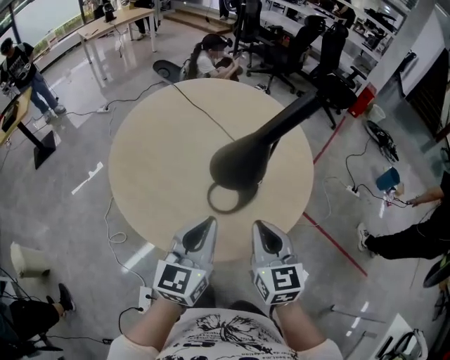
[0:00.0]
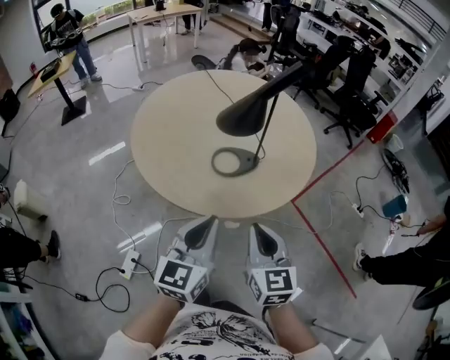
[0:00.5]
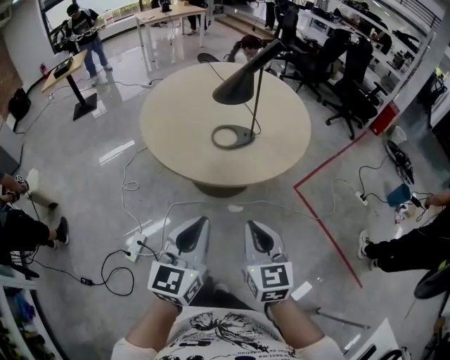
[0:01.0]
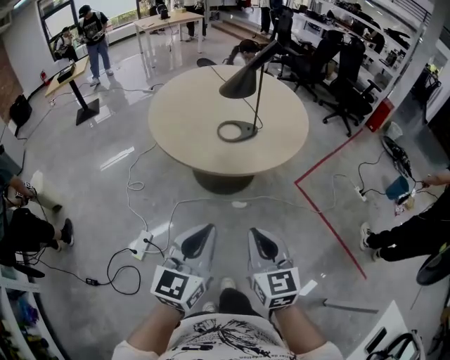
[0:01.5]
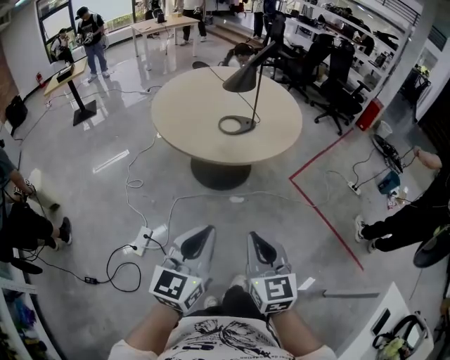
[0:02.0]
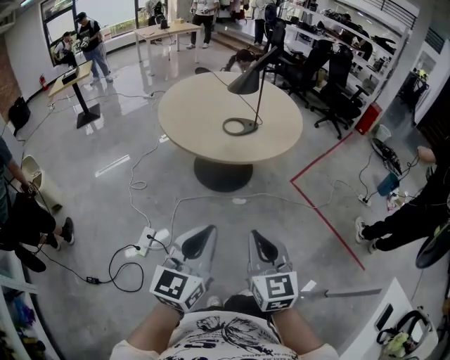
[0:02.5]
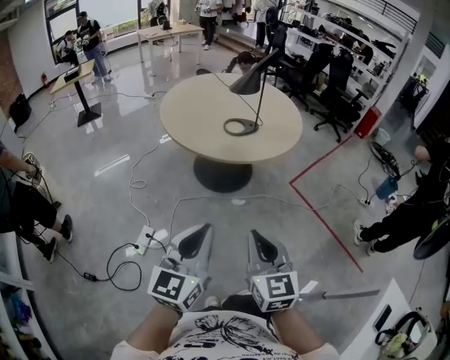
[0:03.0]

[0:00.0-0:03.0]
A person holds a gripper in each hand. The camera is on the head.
0:00.0 to 0:01.5: Both grippers travel together backward, approximately 35 cm.
0:01.5 to 0:03.0: The two grippers go roughly 10 cm backward.

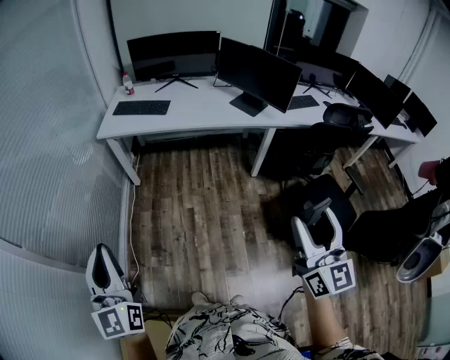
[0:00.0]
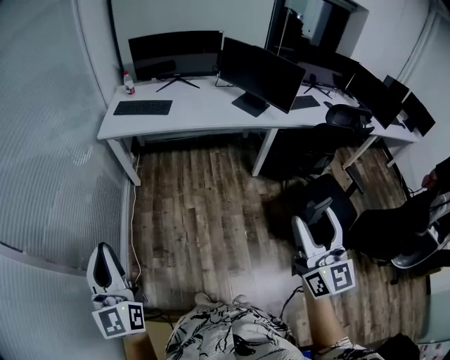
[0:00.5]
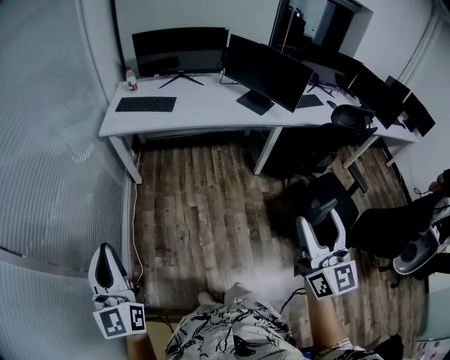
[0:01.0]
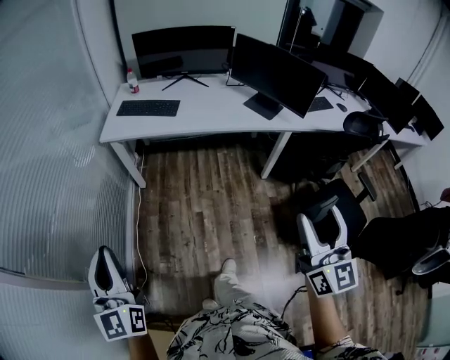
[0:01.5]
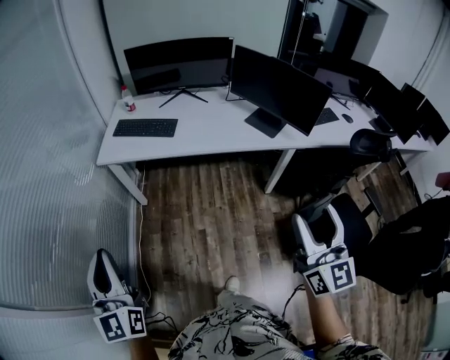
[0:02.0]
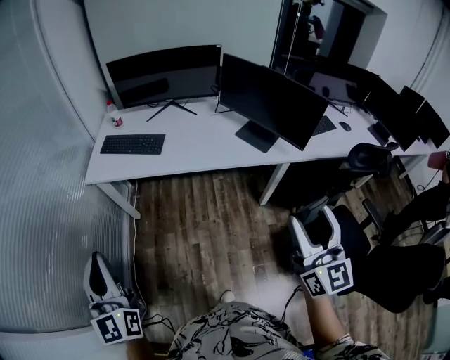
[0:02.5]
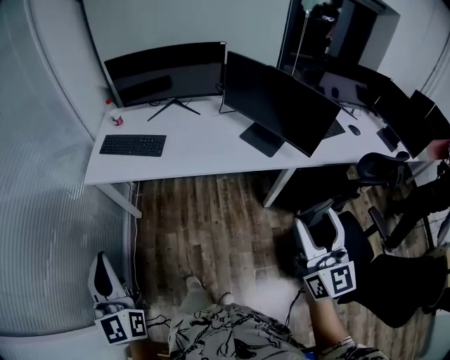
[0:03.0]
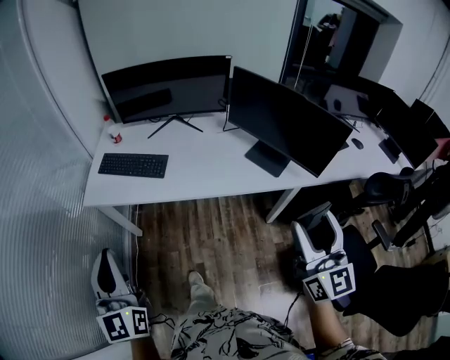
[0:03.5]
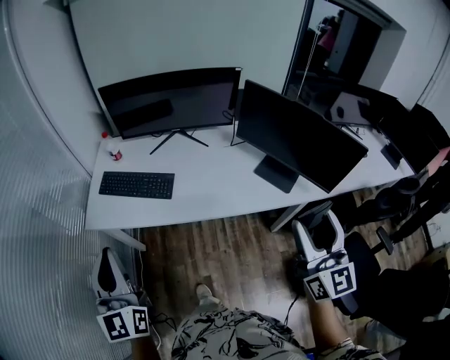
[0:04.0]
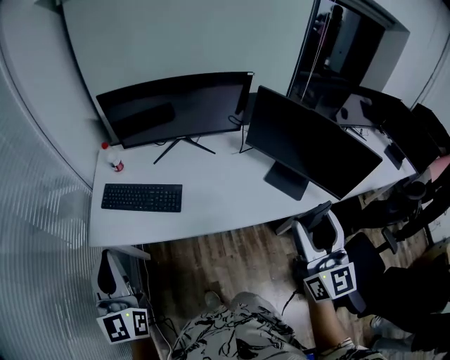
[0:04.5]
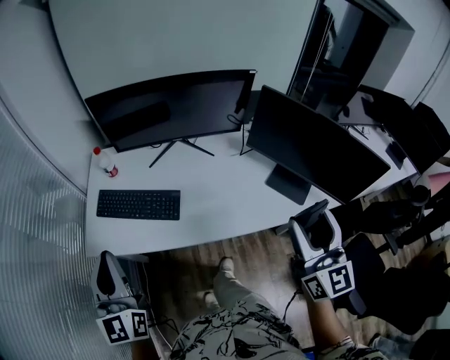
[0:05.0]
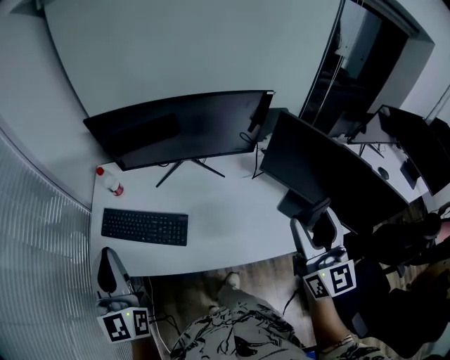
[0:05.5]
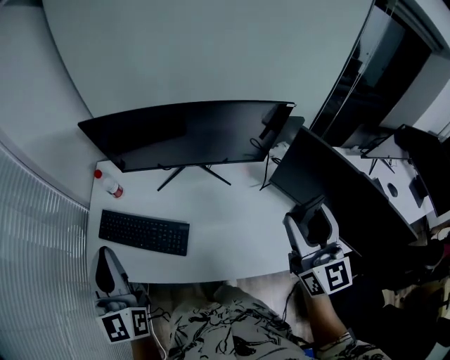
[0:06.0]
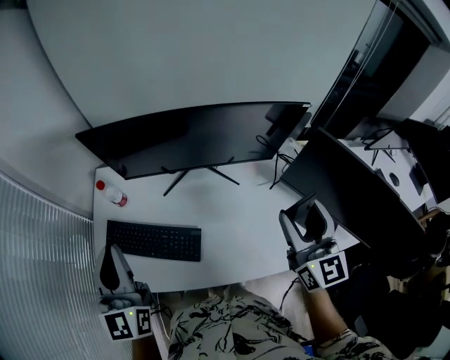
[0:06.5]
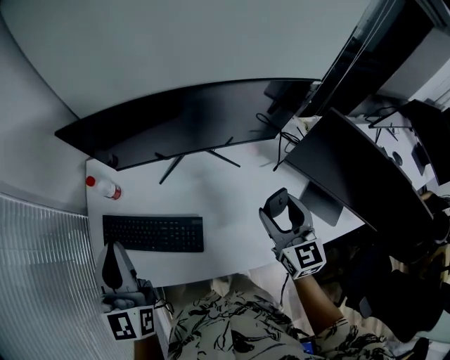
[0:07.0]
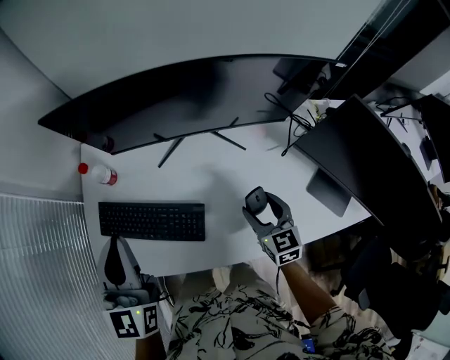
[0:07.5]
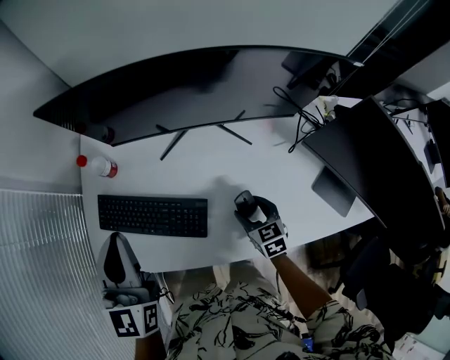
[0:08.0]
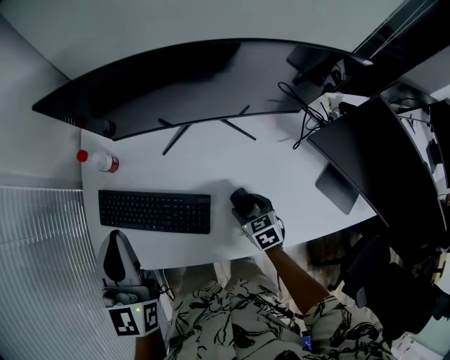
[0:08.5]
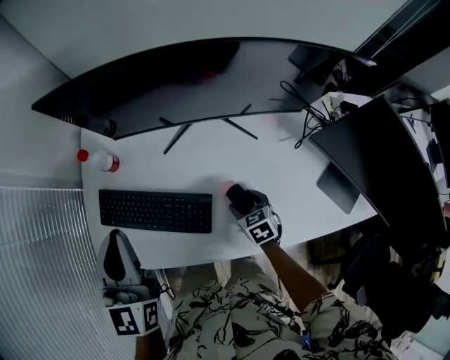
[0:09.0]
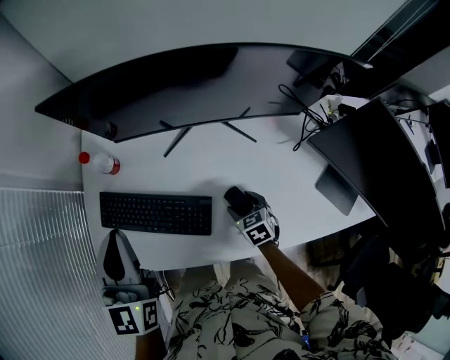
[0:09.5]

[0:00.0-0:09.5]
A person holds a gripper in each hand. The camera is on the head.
0:00.0 to 0:02.0: The two grippers go approximately 25 cm forward.
0:02.0 to 0:04.0: Both grippers move forward, approximately 35 cm.
0:04.0 to 0:05.5: The grippers both shift forward by approximately 25 cm.
0:05.5 to 0:07.5: The right gripper shifts roughly 40 cm downward, forward and to the left, and points its fingers approximately 40 degrees further downward. Meanwhile the left gripper moves forward and downward, about 20 cm.
0:07.5 to 0:09.5: The right gripper moves downward and to the left, about 15 cm, and turns by roughly 30 degrees.

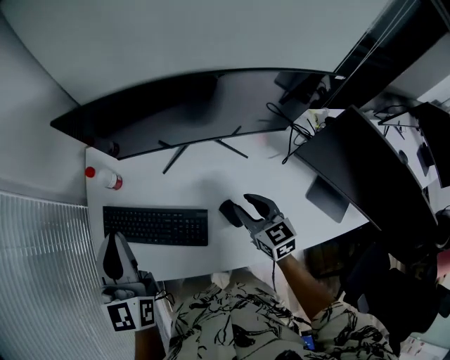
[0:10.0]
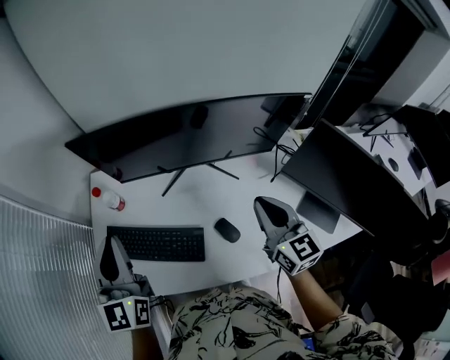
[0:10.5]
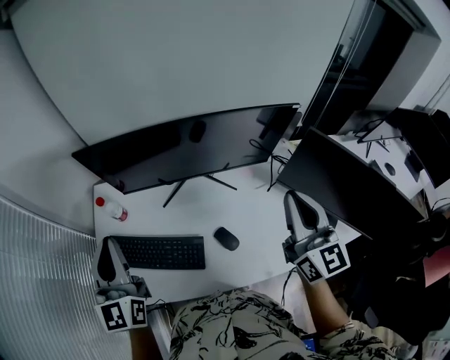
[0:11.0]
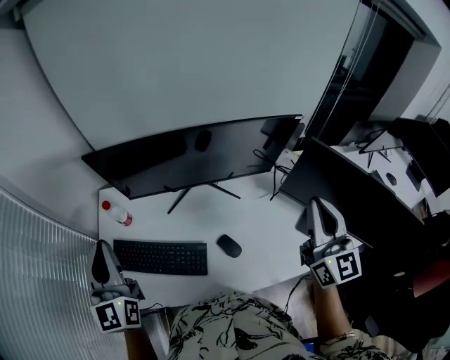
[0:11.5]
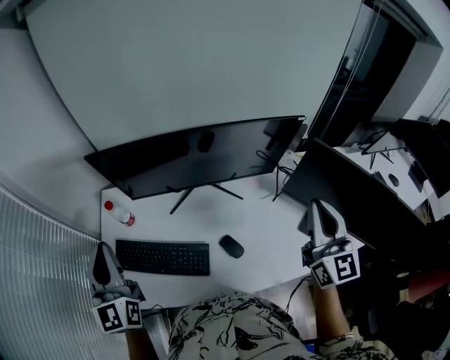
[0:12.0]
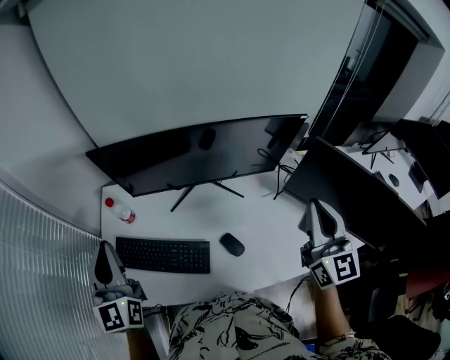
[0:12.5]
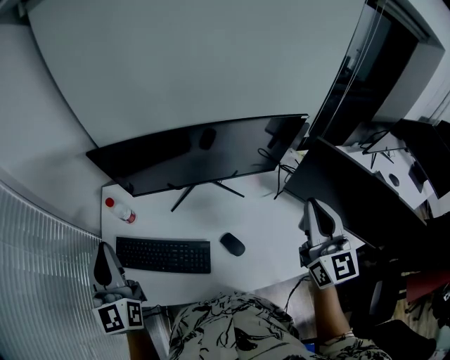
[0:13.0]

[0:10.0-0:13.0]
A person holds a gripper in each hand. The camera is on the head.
0:10.0 to 0:11.5: The left gripper goes roughly 10 cm upward, while the right gripper travels upward and to the right by some 35 cm, tips its fingers upward by roughly 40 degrees, and closes its fingers.
0:11.5 to 0:13.0: The grippers stay close to where they were, moving slightly.

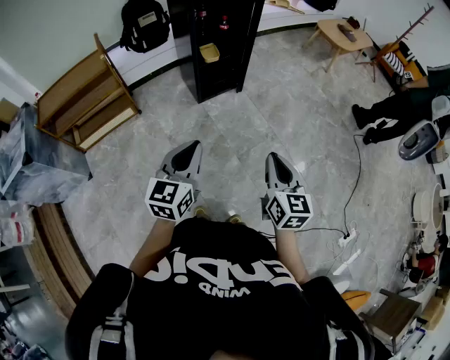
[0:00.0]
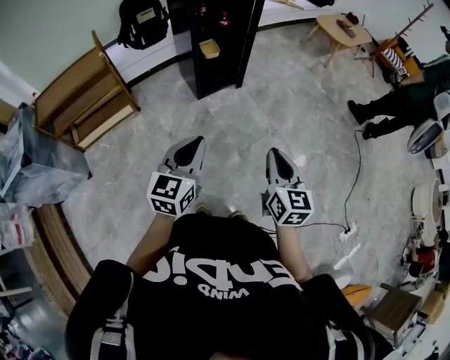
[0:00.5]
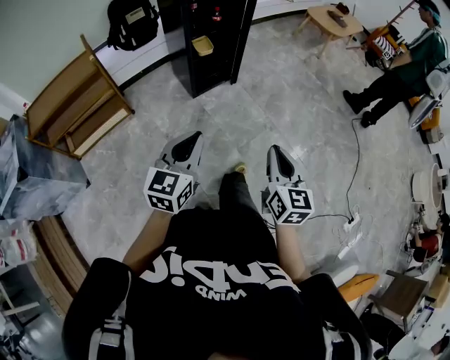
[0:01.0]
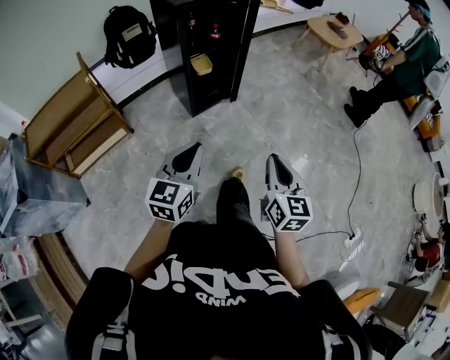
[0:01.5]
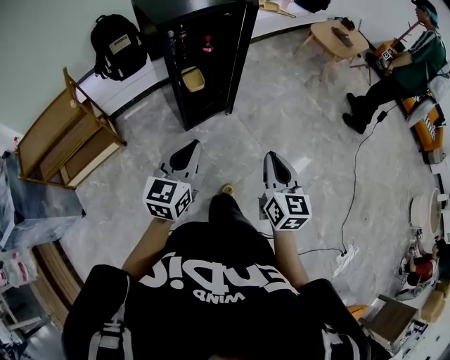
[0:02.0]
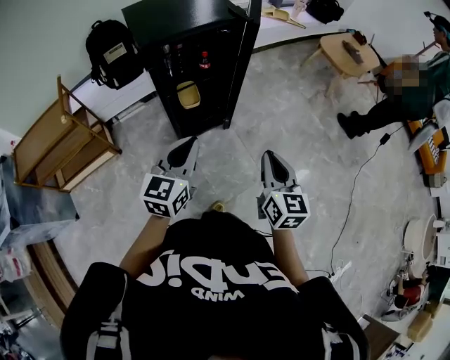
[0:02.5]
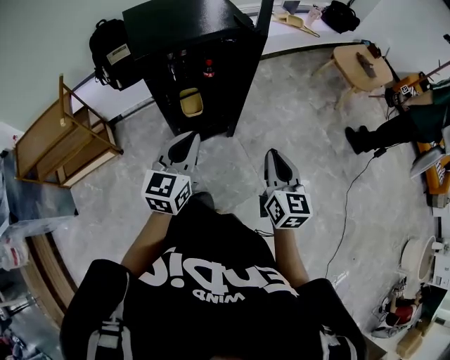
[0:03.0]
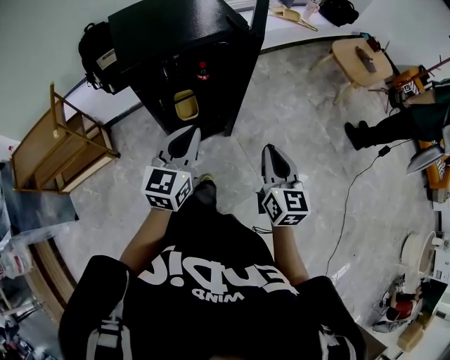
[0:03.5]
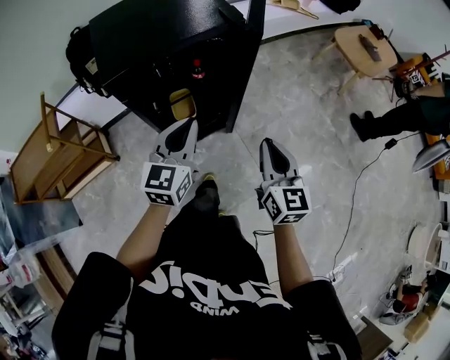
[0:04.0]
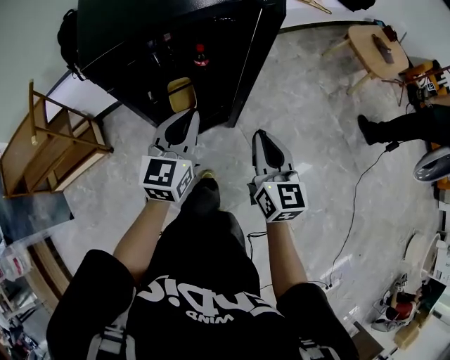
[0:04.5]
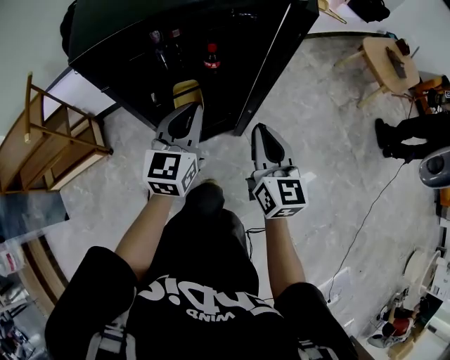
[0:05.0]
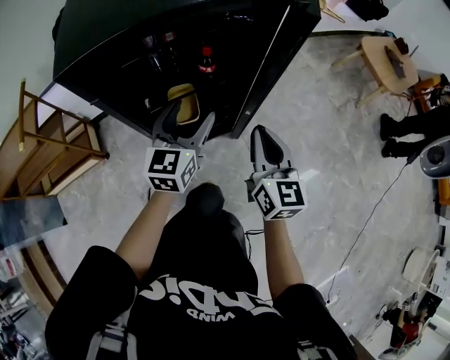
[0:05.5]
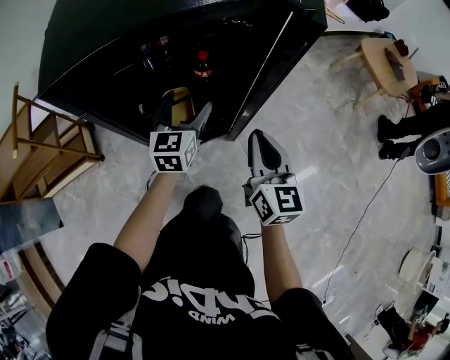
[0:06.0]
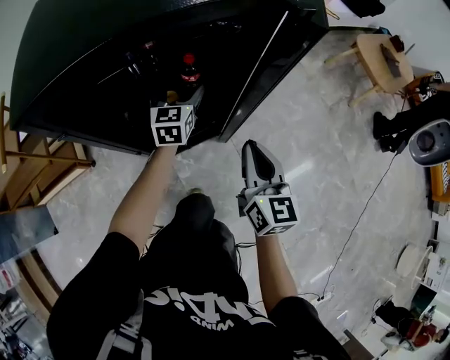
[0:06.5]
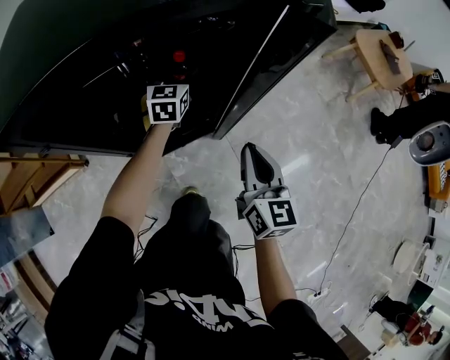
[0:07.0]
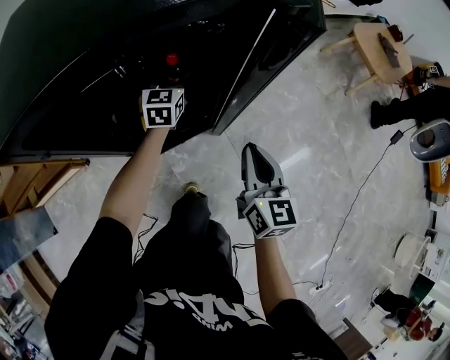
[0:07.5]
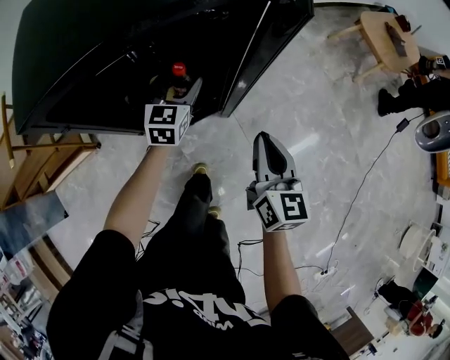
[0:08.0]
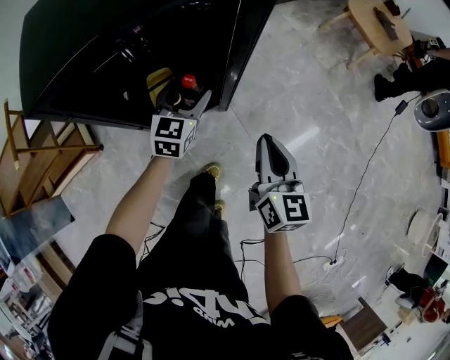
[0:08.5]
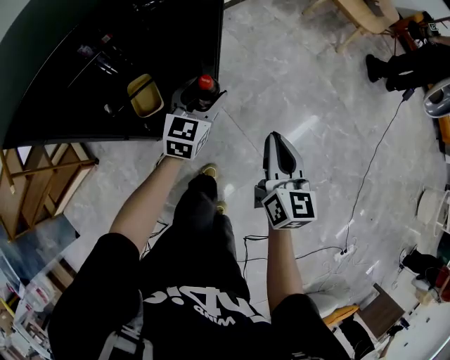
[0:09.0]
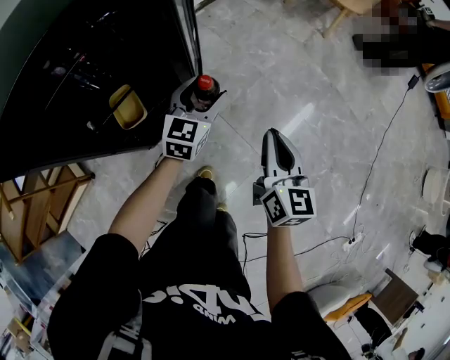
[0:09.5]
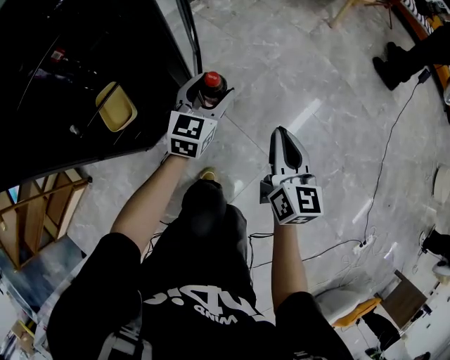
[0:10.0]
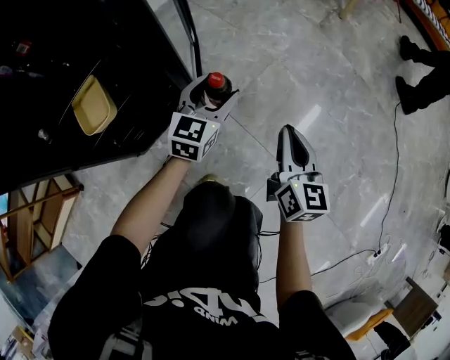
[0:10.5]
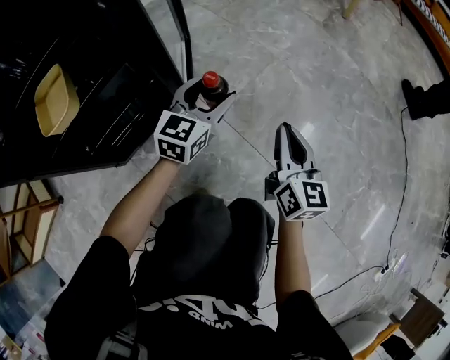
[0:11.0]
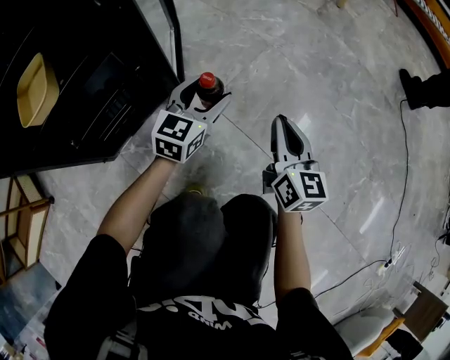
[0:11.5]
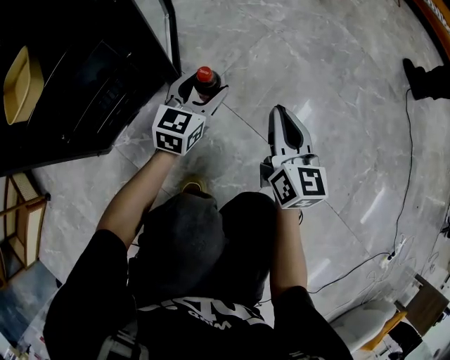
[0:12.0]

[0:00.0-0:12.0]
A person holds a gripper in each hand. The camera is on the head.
0:00.0 to 0:02.0: Both grippers move forward, some 25 cm.
0:02.0 to 0:04.0: The two grippers go roughly 35 cm forward.
0:04.0 to 0:06.0: The grippers both shift downward and forward by about 25 cm. The left gripper opens its fingers.
0:06.0 to 0:08.0: The right gripper changes place by about 5 cm; the left gripper reaches some 15 cm forward, then returns.
0:08.0 to 0:10.0: Both grippers move to the right and downward, approximately 25 cm. The left gripper swivels some 30 degrees. Meanwhile the right gripper changes its angle by some 20 degrees.
0:10.0 to 0:12.0: Both grippers travel together downward, about 35 cm.
